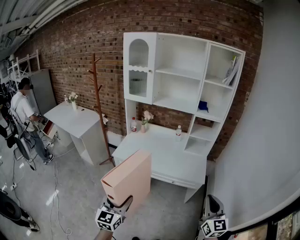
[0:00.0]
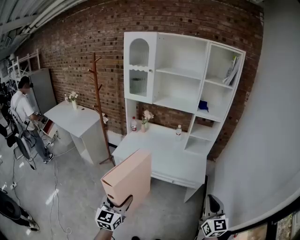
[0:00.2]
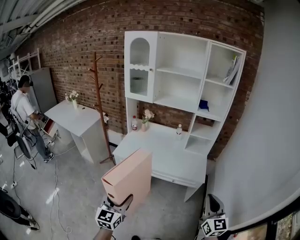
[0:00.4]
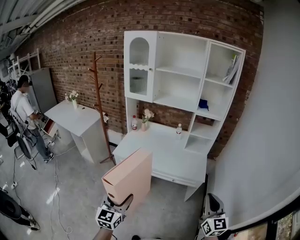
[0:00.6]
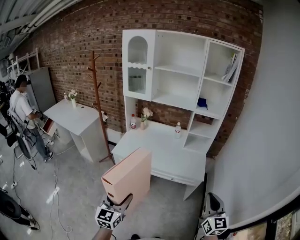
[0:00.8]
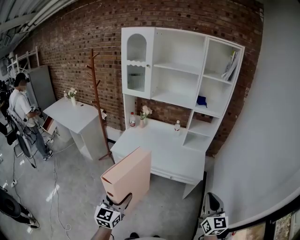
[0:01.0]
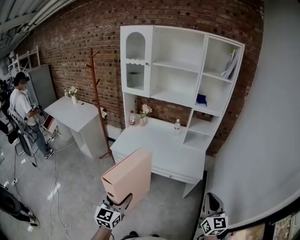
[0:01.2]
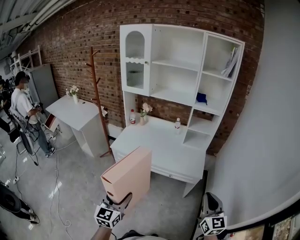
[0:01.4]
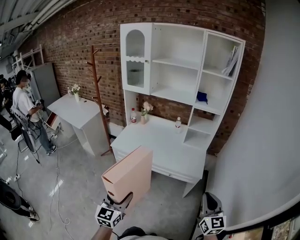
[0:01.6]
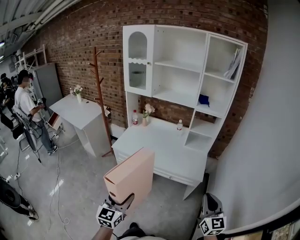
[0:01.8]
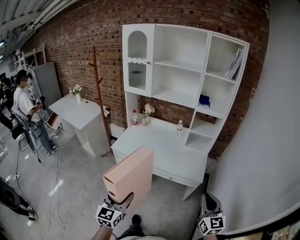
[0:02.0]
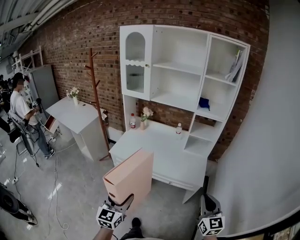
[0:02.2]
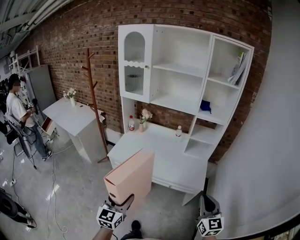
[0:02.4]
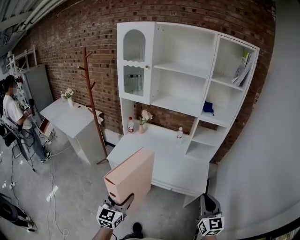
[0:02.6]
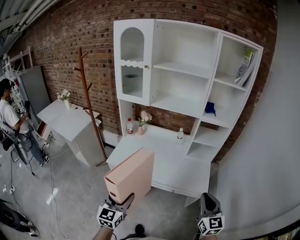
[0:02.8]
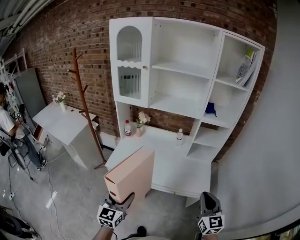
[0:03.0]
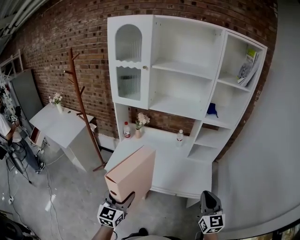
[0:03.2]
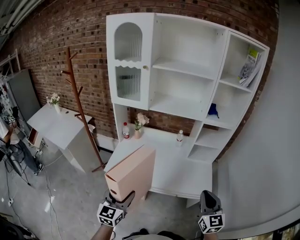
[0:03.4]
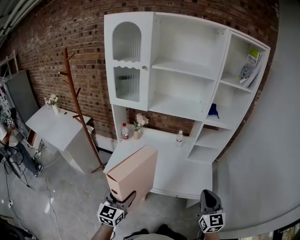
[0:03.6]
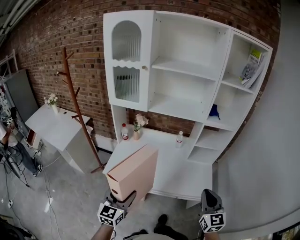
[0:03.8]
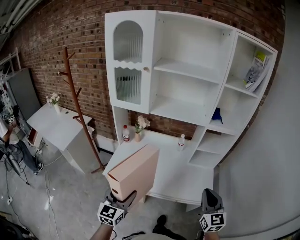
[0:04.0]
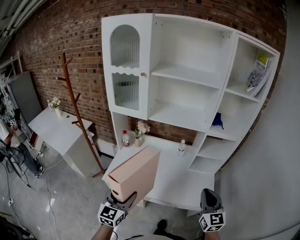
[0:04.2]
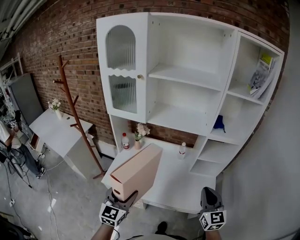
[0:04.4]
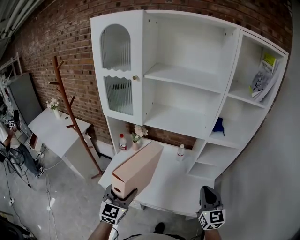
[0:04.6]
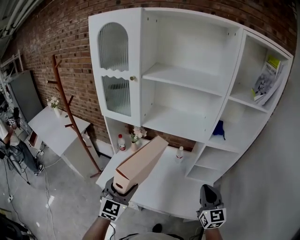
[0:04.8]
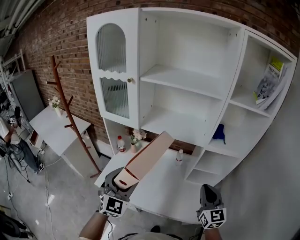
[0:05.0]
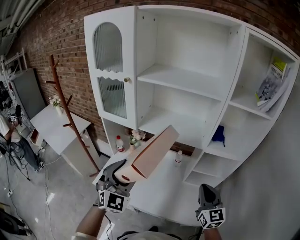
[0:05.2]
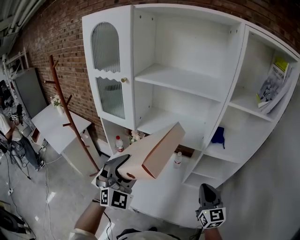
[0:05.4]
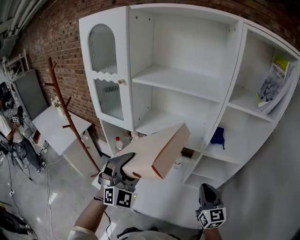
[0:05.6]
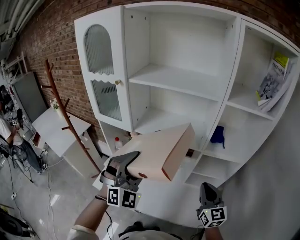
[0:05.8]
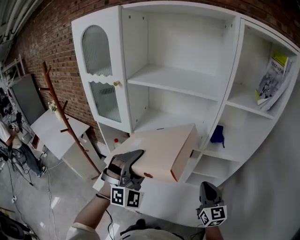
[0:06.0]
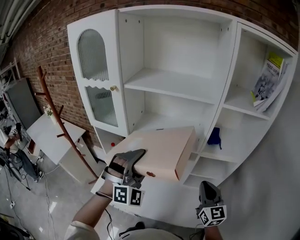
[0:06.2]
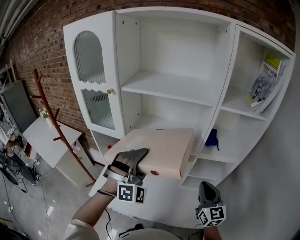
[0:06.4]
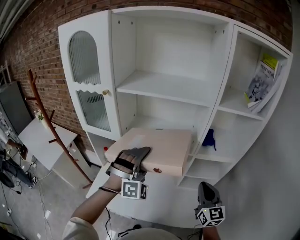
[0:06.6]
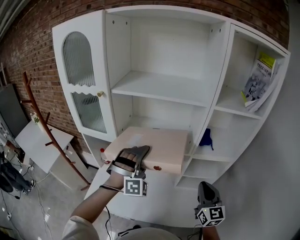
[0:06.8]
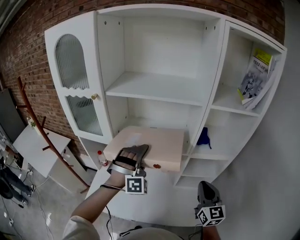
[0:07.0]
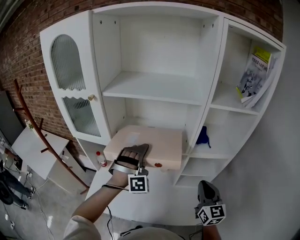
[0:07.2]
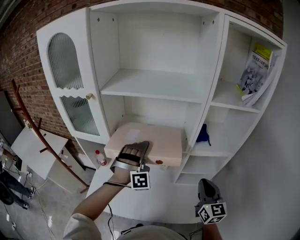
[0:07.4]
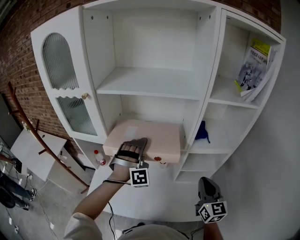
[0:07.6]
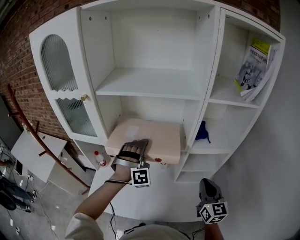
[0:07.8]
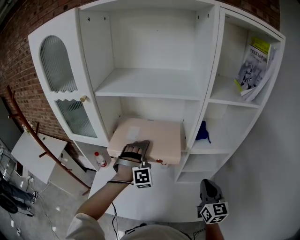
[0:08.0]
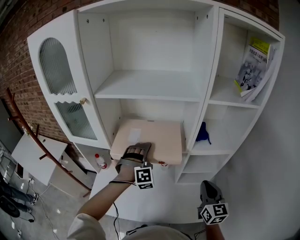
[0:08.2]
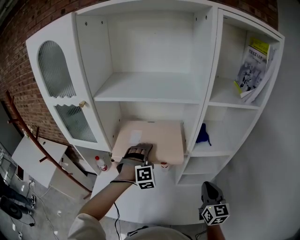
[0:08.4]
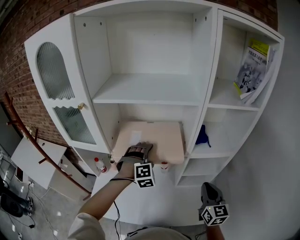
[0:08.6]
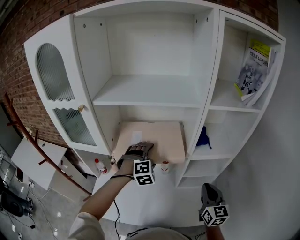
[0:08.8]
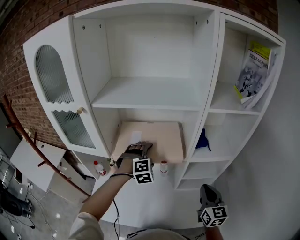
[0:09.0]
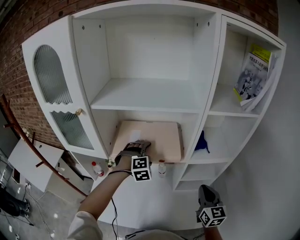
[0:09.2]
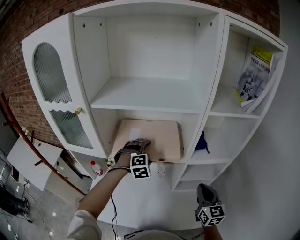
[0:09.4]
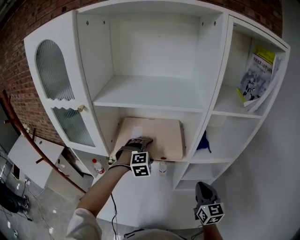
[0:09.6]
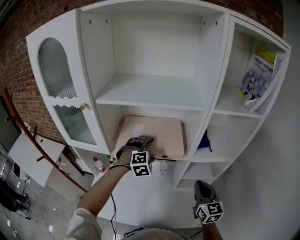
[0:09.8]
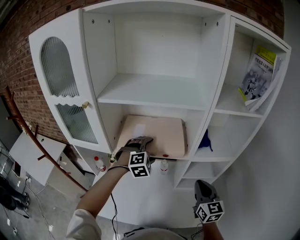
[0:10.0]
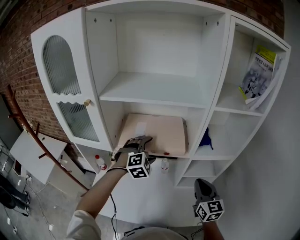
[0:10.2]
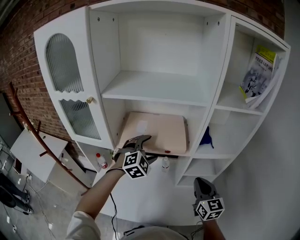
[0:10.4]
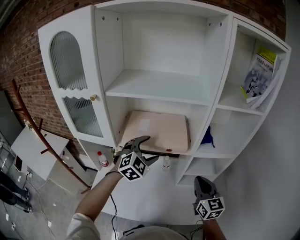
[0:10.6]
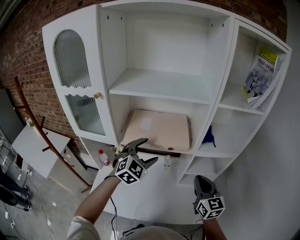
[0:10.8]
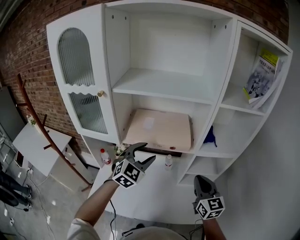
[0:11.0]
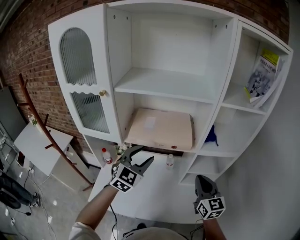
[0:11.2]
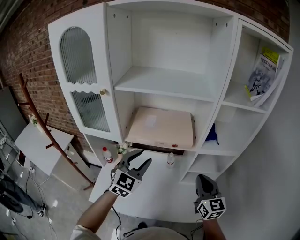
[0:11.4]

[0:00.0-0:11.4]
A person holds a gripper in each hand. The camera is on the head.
0:00.0 to 0:01.4: The left gripper shifts by some 5 cm; the right gripper changes place by some 5 cm.
0:01.4 to 0:02.8: The left gripper heads forward, covering about 20 cm. Meanwhile the right gripper heads forward and to the left, covering some 20 cm.
0:02.8 to 0:04.2: Both grippers move forward, approximately 15 cm.
0:04.2 to 0:05.6: The right gripper travels forward by roughly 20 cm, while the left gripper shifts some 30 cm forward, upward and to the right, and rolls clockwise, seen from behind, by some 50 degrees.
0:05.6 to 0:07.2: The left gripper shifts some 15 cm forward and to the right, and changes its angle by roughly 40 degrees.
0:07.2 to 0:08.6: The left gripper shifts some 10 cm downward and forward, and changes its angle by about 20 degrees.
0:08.6 to 0:10.0: The grippers stay close to where they were, moving slightly.
0:10.0 to 0:11.4: The right gripper changes place by approximately 5 cm. Meanwhile the left gripper travels backward, upward and to the left by about 15 cm, tips its fingers upward by approximately 30 degrees, and closes.

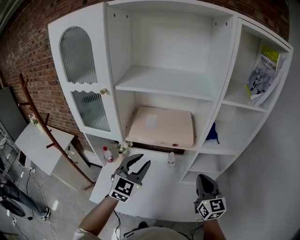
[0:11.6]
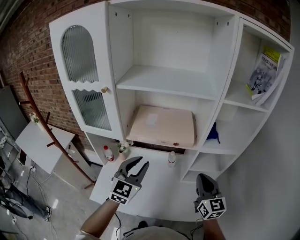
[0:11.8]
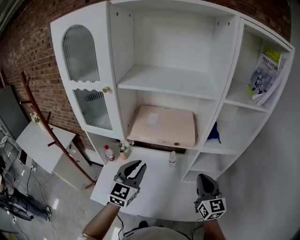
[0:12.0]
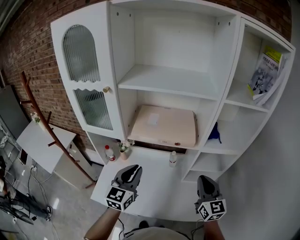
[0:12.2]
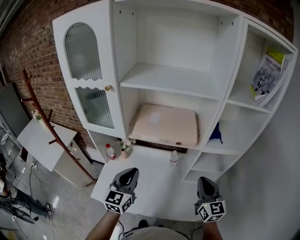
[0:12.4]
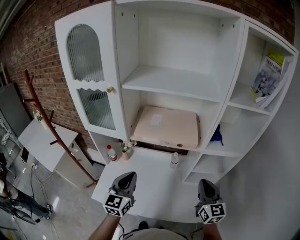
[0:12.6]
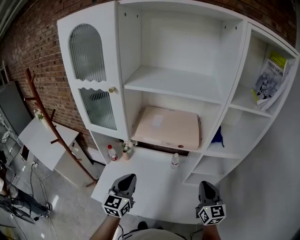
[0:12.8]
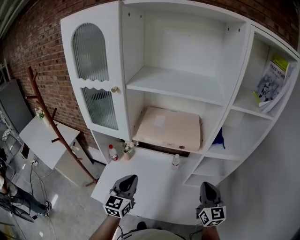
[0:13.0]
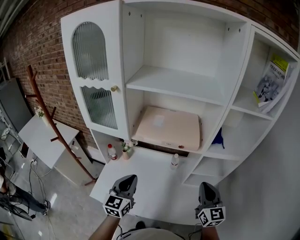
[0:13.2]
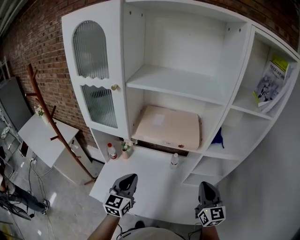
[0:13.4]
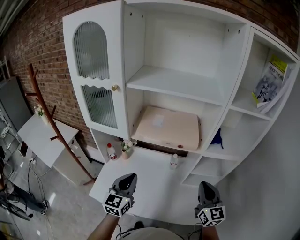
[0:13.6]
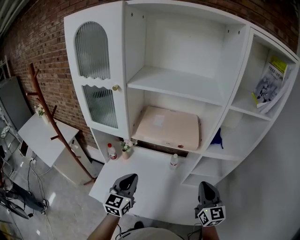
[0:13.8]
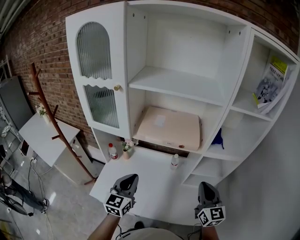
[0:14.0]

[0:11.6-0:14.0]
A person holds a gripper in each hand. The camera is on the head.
0:11.6 to 0:12.8: The left gripper is displaced to the left, downward and backward by about 10 cm, and rotates roughly 30 degrees.
0:12.8 to 0:14.0: The grippers make only small movements.

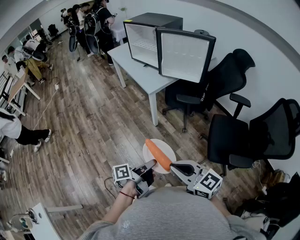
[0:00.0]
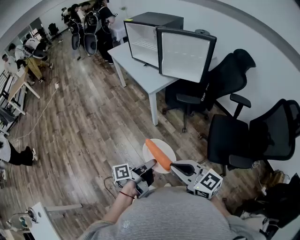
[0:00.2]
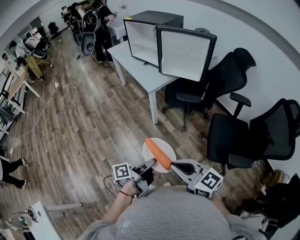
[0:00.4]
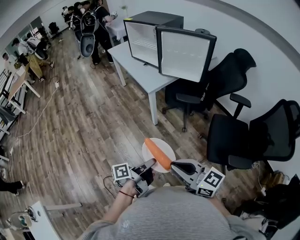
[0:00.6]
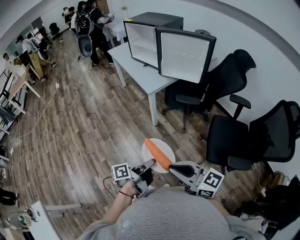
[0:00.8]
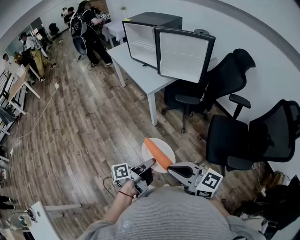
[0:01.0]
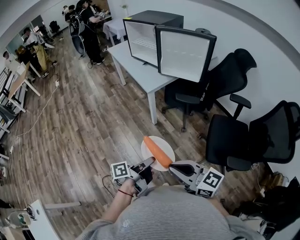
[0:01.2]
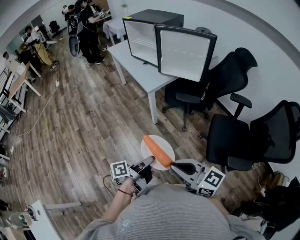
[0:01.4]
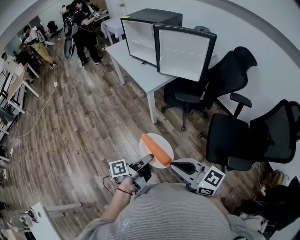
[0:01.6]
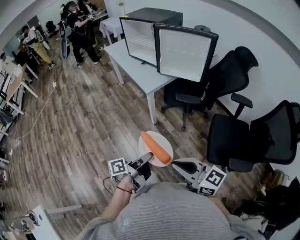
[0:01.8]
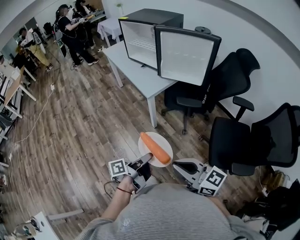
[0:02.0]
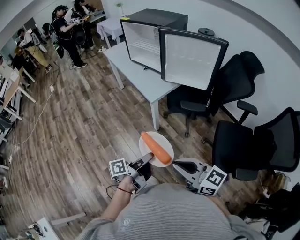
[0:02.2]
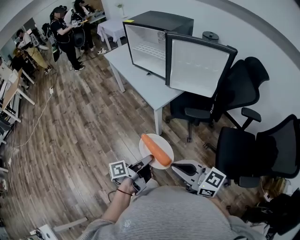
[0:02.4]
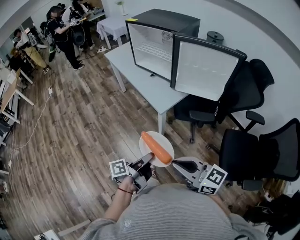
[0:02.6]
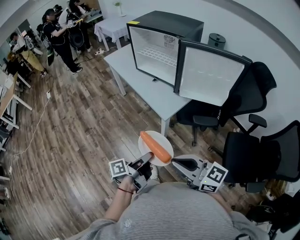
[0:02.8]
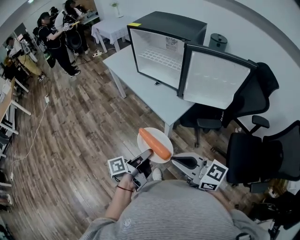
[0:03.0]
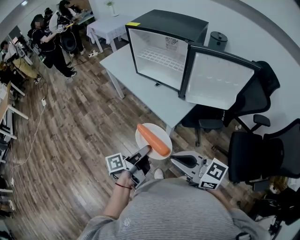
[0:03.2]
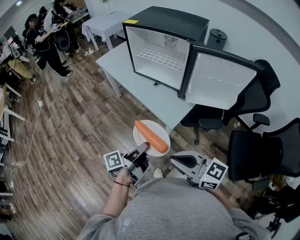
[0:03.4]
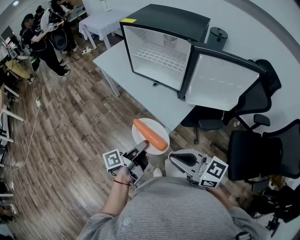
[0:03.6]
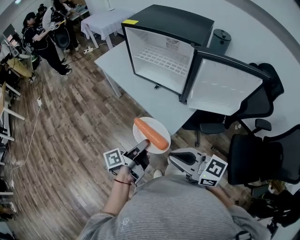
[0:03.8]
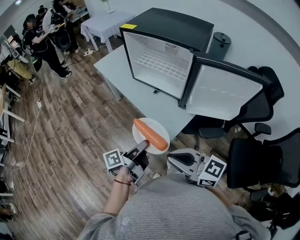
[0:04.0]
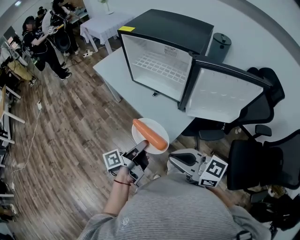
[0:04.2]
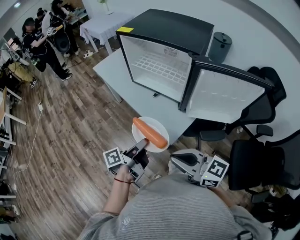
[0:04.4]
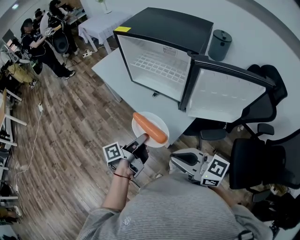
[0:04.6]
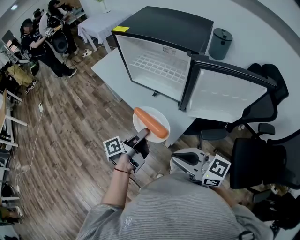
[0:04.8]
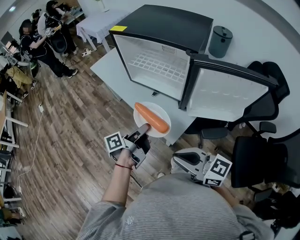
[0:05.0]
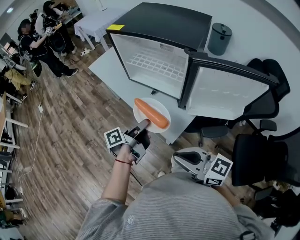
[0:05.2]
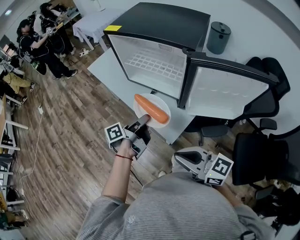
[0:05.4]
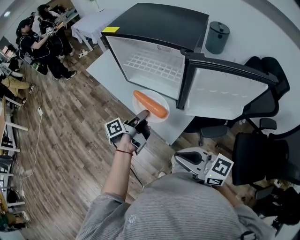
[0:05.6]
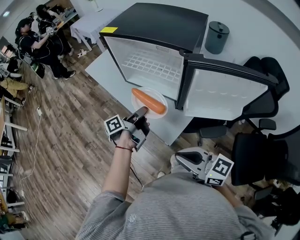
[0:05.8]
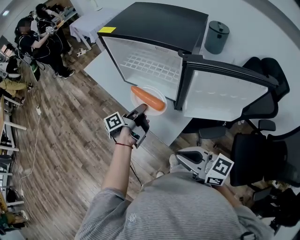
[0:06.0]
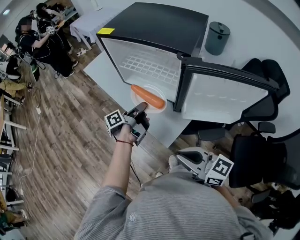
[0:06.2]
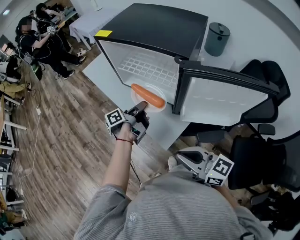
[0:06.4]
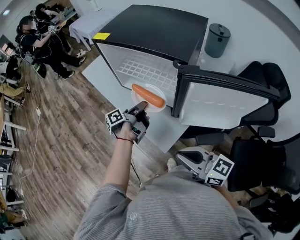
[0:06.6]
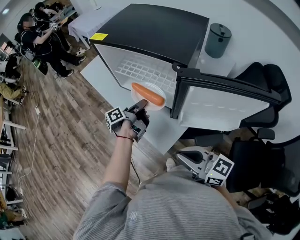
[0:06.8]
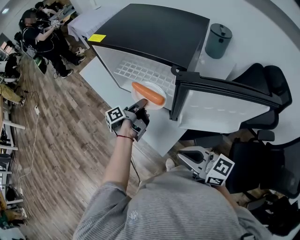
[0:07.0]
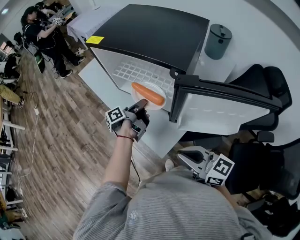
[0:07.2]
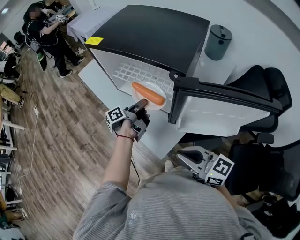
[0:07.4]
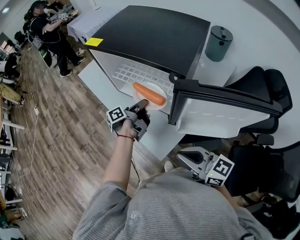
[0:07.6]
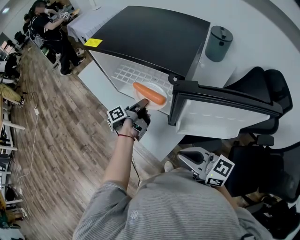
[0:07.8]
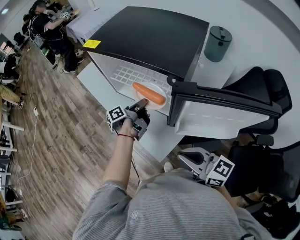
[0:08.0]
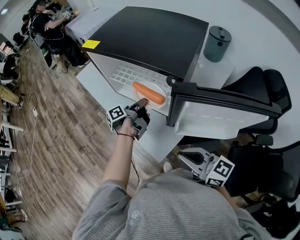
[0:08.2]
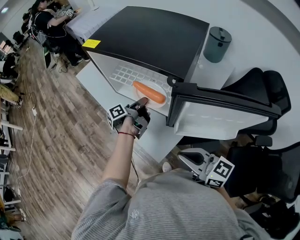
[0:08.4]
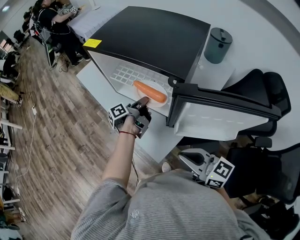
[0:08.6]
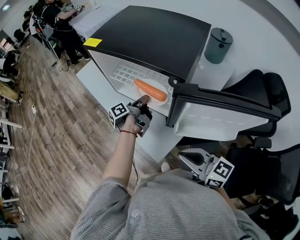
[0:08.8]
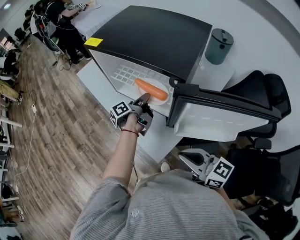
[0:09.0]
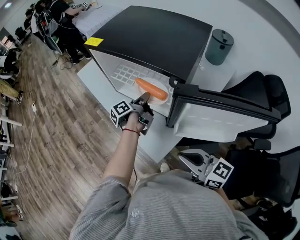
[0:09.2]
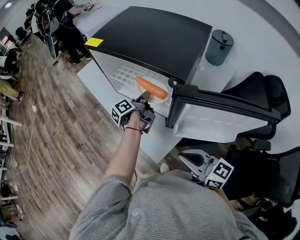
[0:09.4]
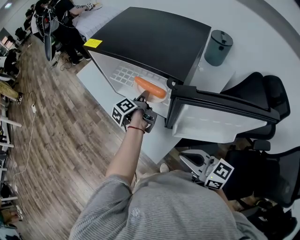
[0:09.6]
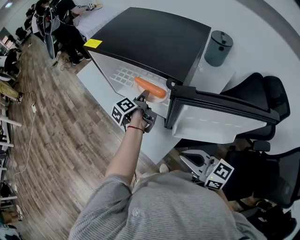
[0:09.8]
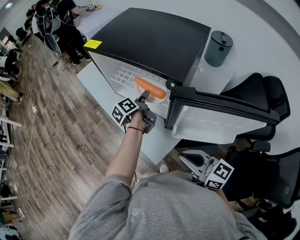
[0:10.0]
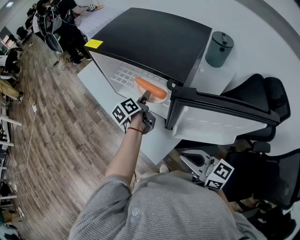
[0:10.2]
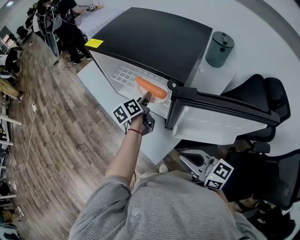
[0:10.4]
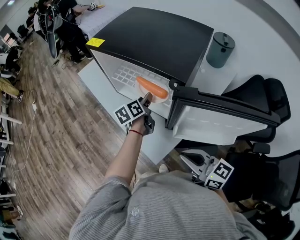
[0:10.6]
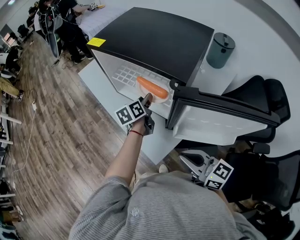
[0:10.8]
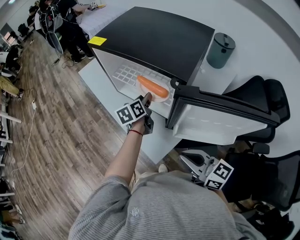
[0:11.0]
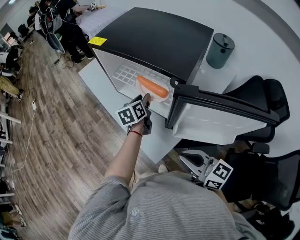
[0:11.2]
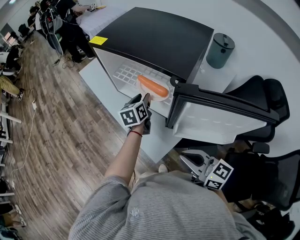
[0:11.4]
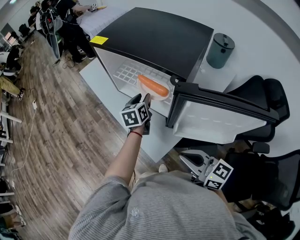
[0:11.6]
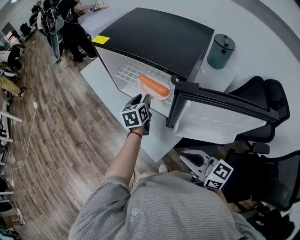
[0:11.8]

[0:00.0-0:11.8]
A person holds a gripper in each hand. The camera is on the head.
0:00.0 to 0:01.4: The grippers move only a little.
0:01.4 to 0:03.0: Both grippers travel together forward and to the left, approximately 40 cm.
0:03.0 to 0:04.4: Both grippers travel together forward, about 20 cm.
0:04.4 to 0:06.0: The left gripper heads forward, covering some 20 cm. The right gripper heads to the right, covering about 5 cm.
0:06.0 to 0:07.4: The two grippers go about 10 cm forward and to the right.
0:07.4 to 0:08.8: There are only small adjustments of the grippers.
0:08.8 to 0:10.4: The left gripper turns by approximately 40 degrees, and opens its fingers.
0:10.4 to 0:11.8: The left gripper changes its angle by about 30 degrees.
